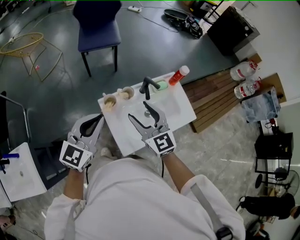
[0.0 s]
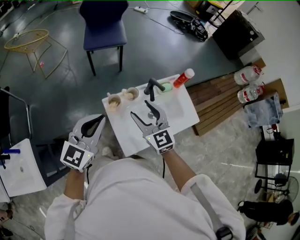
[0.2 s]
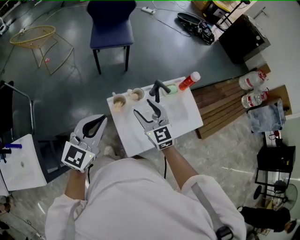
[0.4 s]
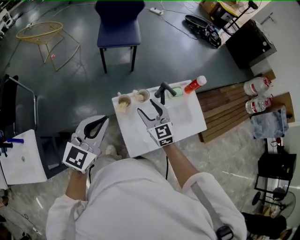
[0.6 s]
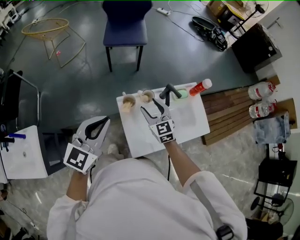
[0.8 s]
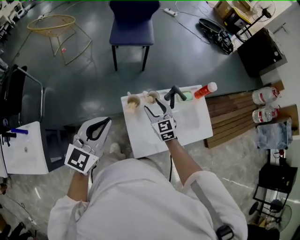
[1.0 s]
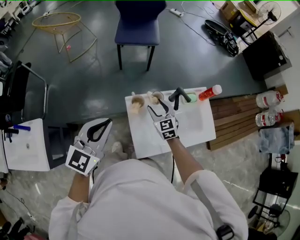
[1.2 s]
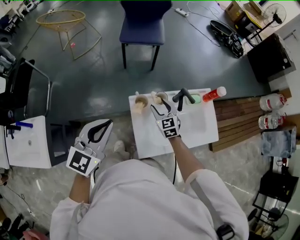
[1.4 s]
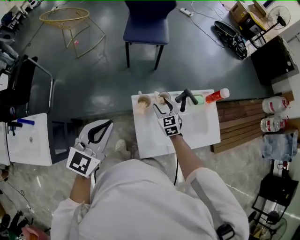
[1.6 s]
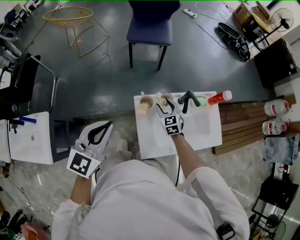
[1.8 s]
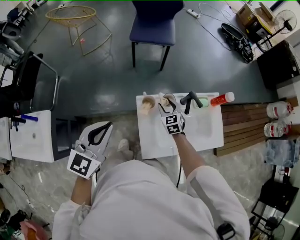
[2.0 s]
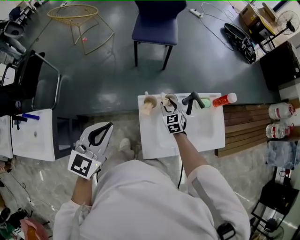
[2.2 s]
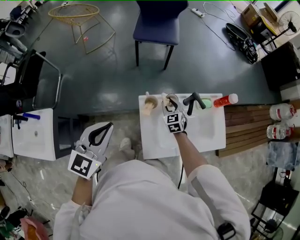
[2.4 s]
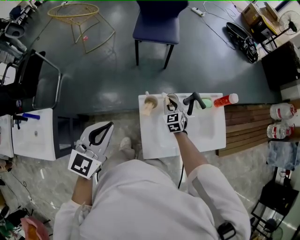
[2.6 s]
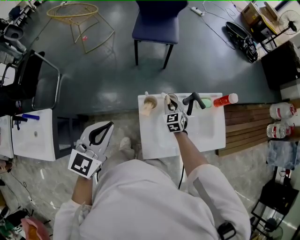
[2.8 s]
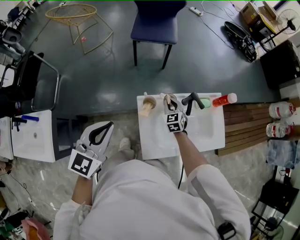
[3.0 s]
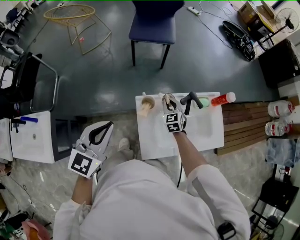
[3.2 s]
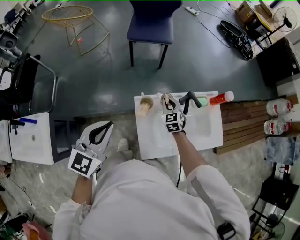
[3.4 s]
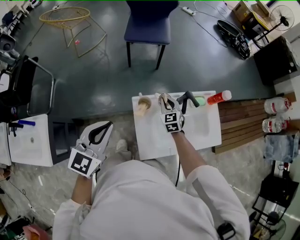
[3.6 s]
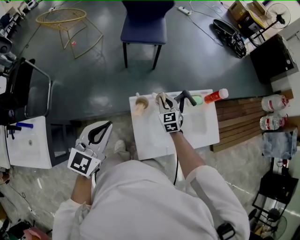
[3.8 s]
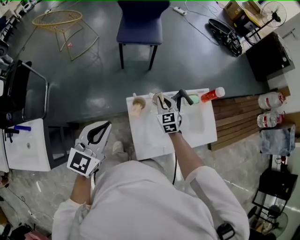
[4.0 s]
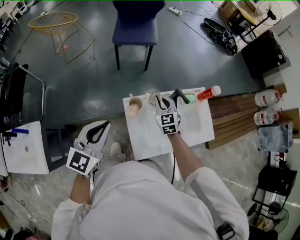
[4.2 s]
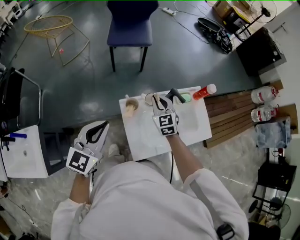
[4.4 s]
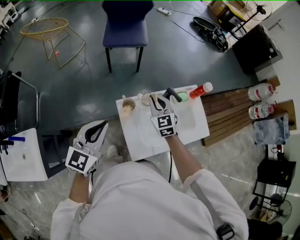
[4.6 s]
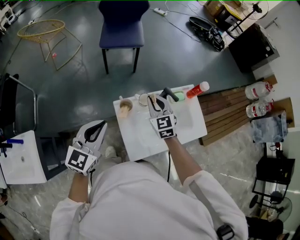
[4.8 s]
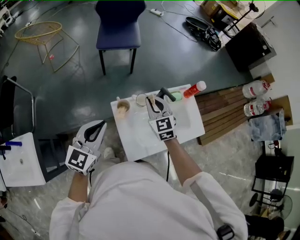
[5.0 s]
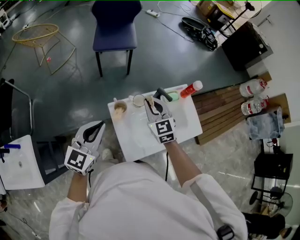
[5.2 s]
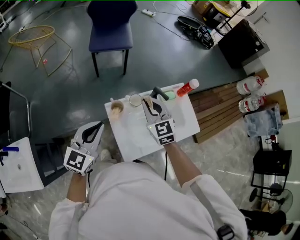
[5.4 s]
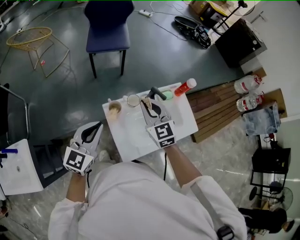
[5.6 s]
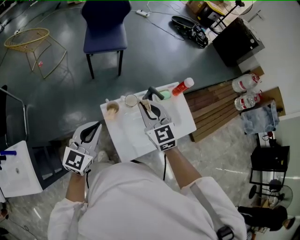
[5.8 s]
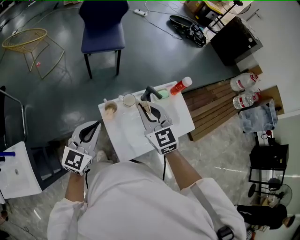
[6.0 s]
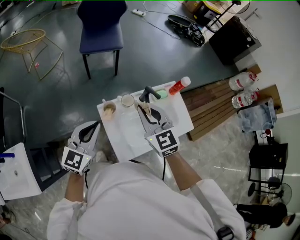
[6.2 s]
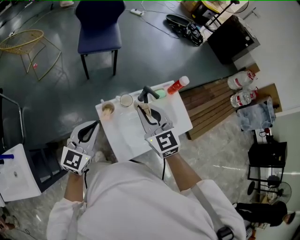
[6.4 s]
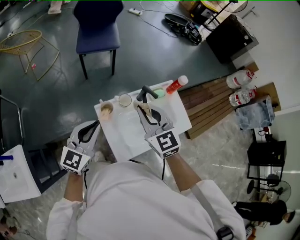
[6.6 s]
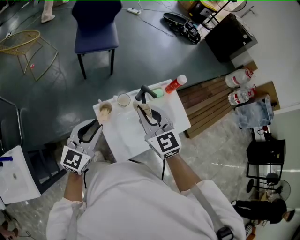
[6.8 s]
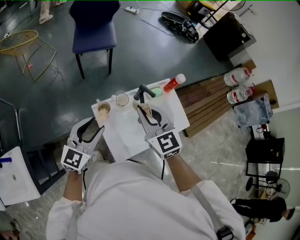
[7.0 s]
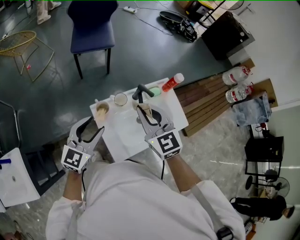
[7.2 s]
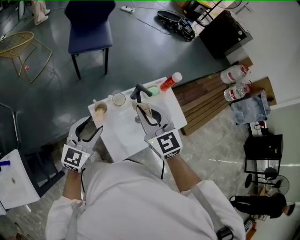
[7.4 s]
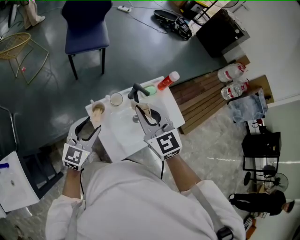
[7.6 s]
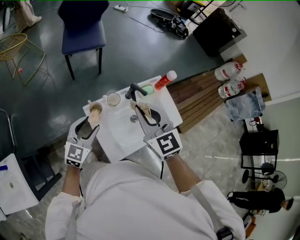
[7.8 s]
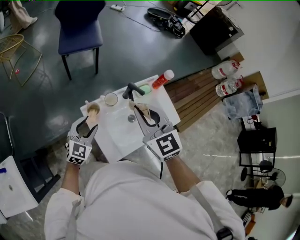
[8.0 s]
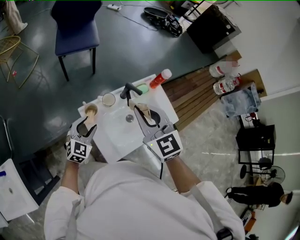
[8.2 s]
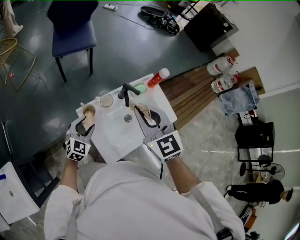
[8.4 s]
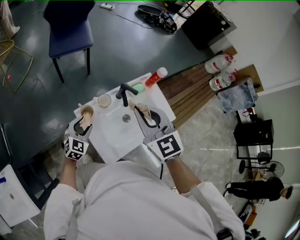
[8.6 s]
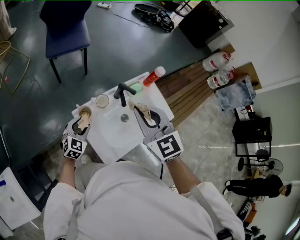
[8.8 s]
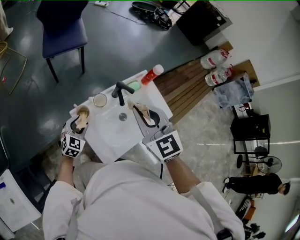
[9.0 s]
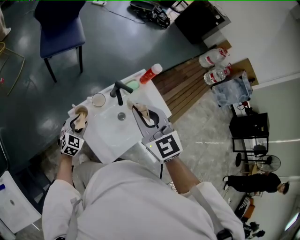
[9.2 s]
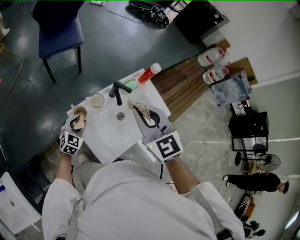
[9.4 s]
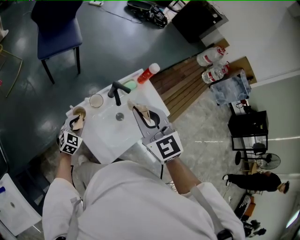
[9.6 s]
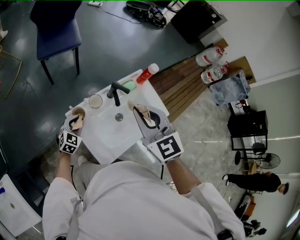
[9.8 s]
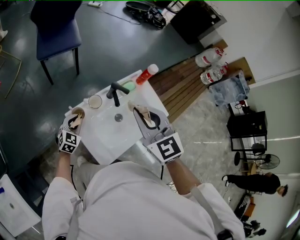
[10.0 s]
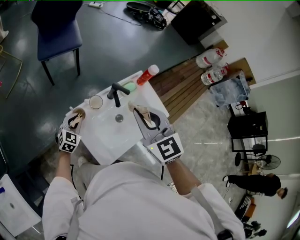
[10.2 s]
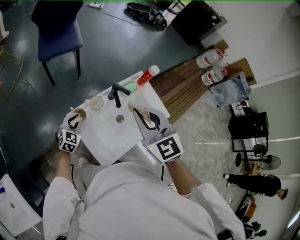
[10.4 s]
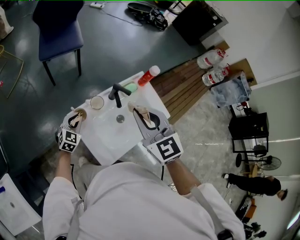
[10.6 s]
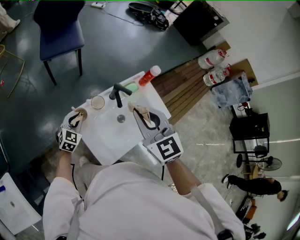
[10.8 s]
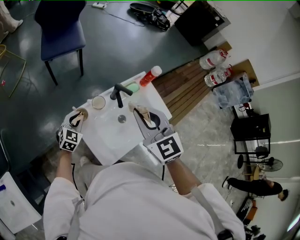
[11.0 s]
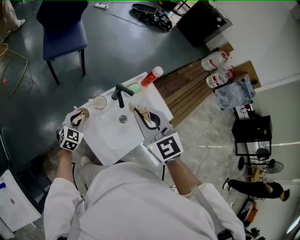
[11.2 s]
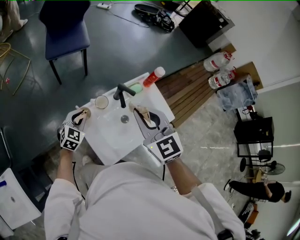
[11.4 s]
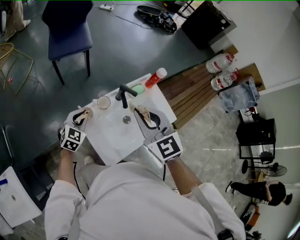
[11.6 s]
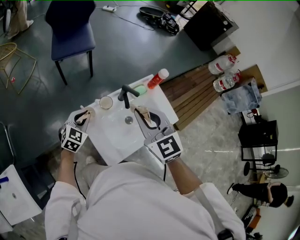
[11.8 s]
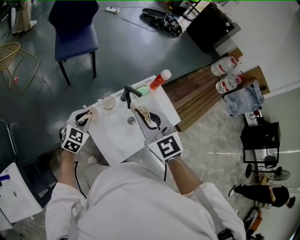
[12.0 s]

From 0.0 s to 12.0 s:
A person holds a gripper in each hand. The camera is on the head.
From 0.0 s to 1.6 s: The left gripper travels to the left by approximately 10 cm. The right gripper travels downward and forward by about 25 cm, and changes its angle by some 20 degrees.
From 1.6 s to 3.0 s: The right gripper moves approximately 5 cm, and closes its fingers.
From 3.0 s to 4.4 s: The right gripper heads upward, covering approximately 10 cm.
From 4.4 s to 6.0 s: The right gripper heads upward and backward, covering approximately 15 cm.
From 6.0 s to 7.6 s: The left gripper shifts roughly 5 cm downward, and opens up.
From 7.6 s to 9.0 s: The left gripper shifts about 20 cm downward, and rotates roughly 20 degrees.
From 9.0 s to 10.4 s: The left gripper closes up.
From 10.4 s to 12.0 s: The left gripper goes some 10 cm upward.

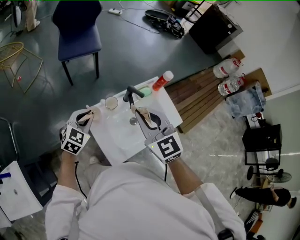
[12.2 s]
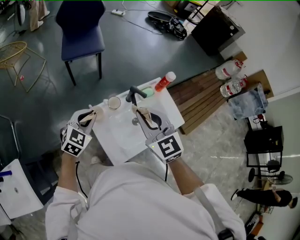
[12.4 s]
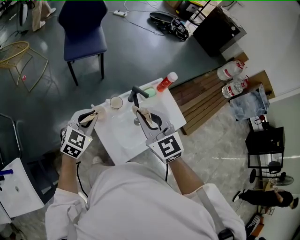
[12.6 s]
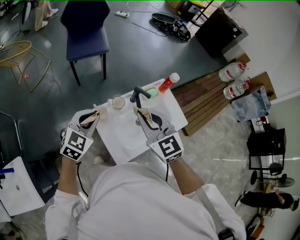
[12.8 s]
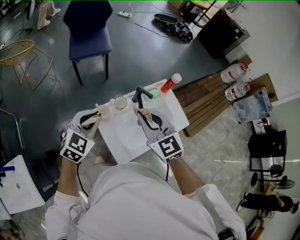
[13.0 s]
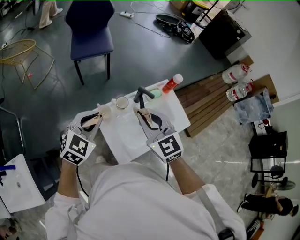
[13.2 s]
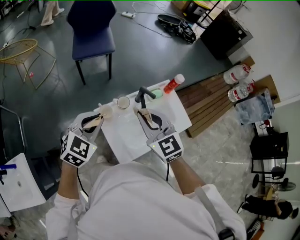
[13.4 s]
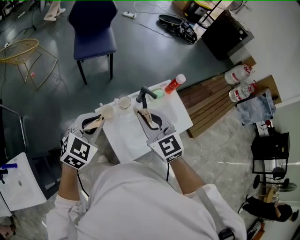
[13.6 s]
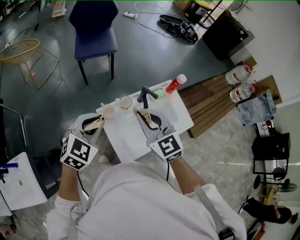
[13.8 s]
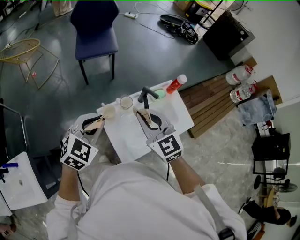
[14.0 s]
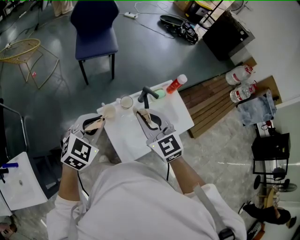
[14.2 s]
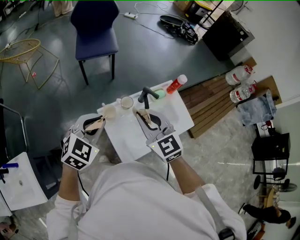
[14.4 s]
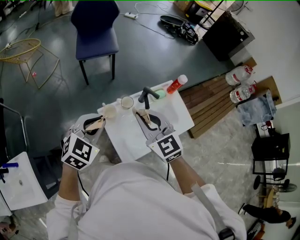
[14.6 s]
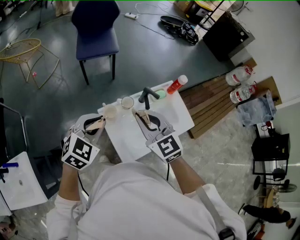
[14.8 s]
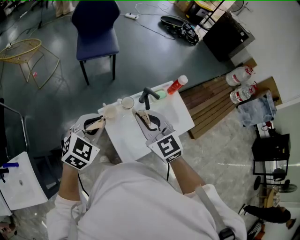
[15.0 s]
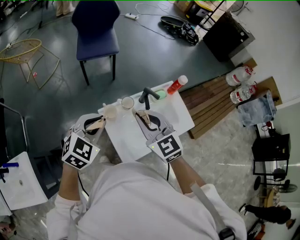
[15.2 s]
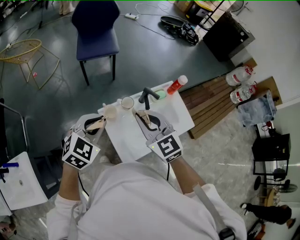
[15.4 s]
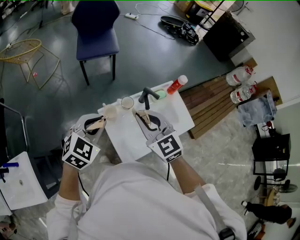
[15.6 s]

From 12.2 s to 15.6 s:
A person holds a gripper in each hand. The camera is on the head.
From 12.2 s to 13.8 s: The left gripper goes some 15 cm upward and backward. The right gripper shifts by approximately 5 cm.
From 13.8 s to 15.6 s: The grippers stay close to where they were, moving slightly.

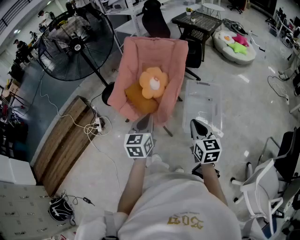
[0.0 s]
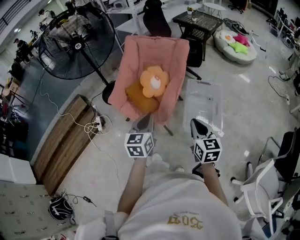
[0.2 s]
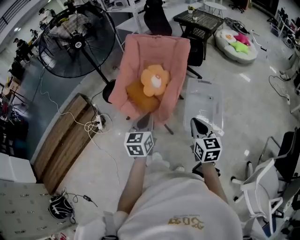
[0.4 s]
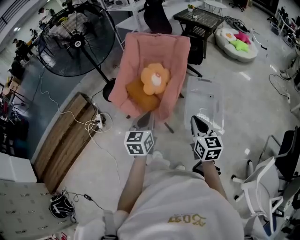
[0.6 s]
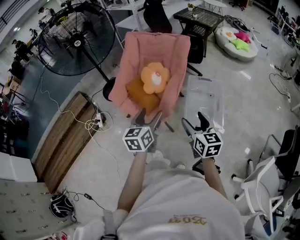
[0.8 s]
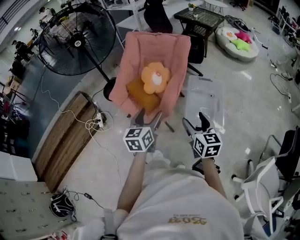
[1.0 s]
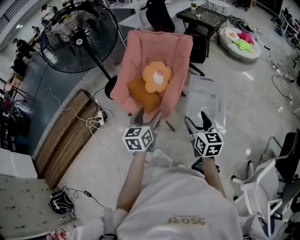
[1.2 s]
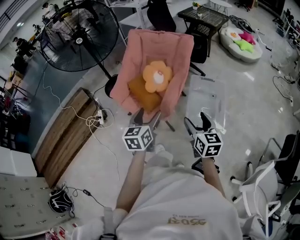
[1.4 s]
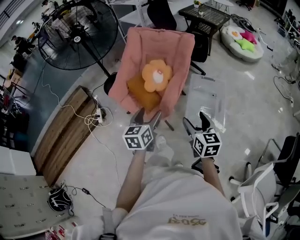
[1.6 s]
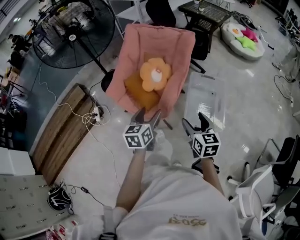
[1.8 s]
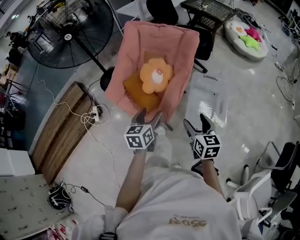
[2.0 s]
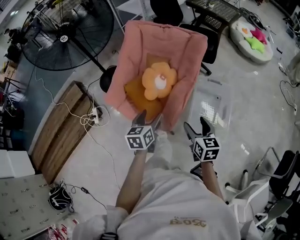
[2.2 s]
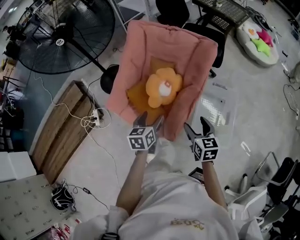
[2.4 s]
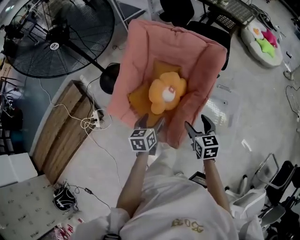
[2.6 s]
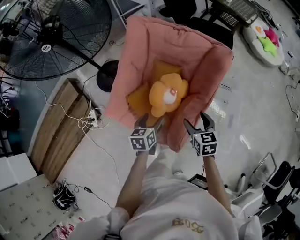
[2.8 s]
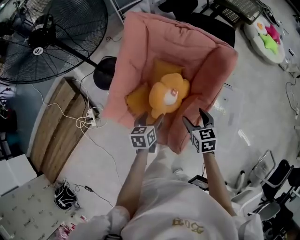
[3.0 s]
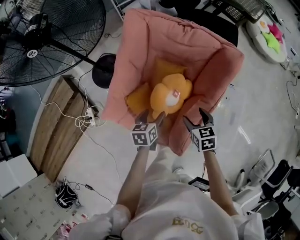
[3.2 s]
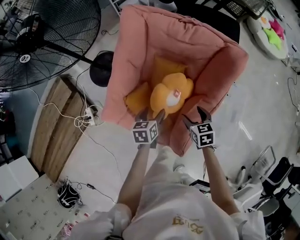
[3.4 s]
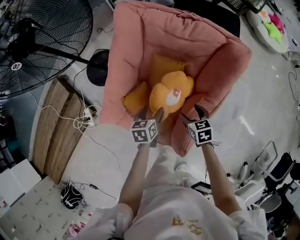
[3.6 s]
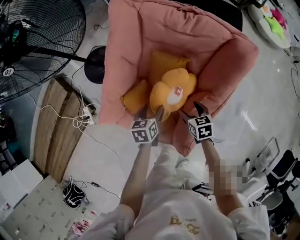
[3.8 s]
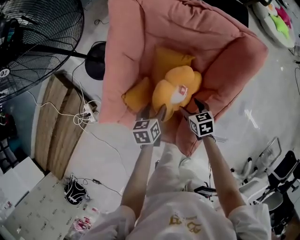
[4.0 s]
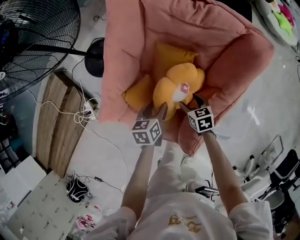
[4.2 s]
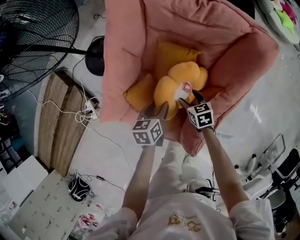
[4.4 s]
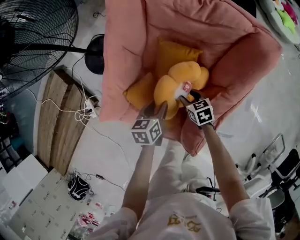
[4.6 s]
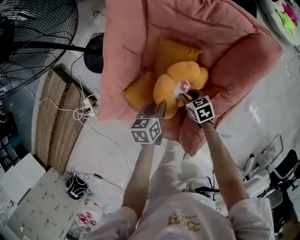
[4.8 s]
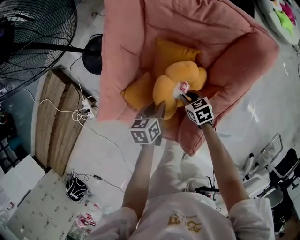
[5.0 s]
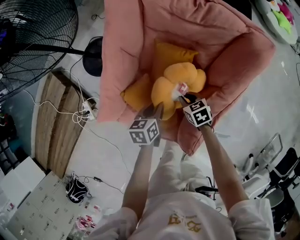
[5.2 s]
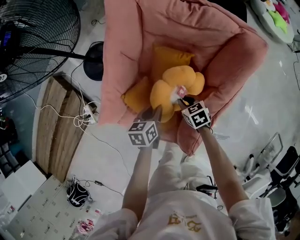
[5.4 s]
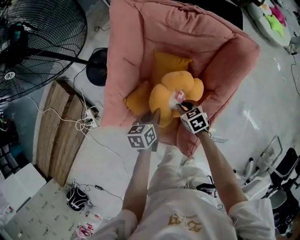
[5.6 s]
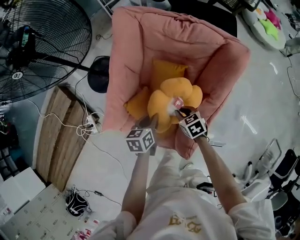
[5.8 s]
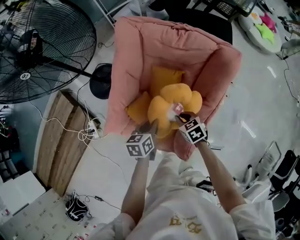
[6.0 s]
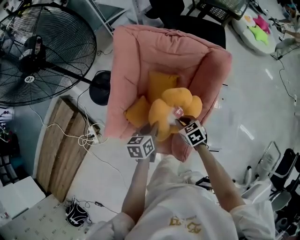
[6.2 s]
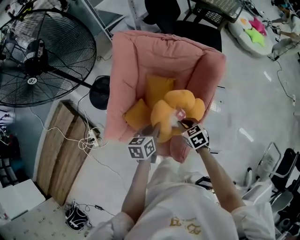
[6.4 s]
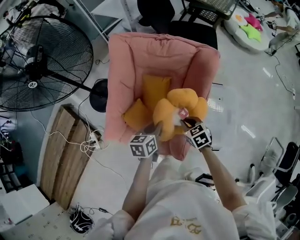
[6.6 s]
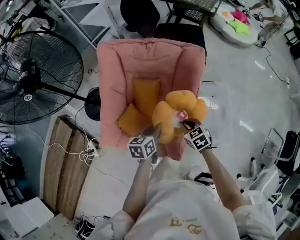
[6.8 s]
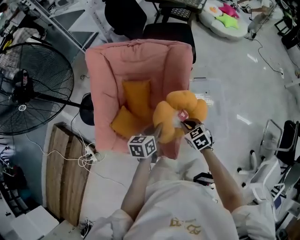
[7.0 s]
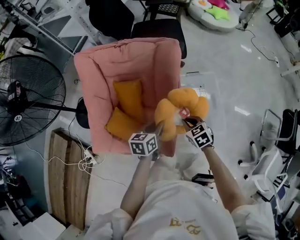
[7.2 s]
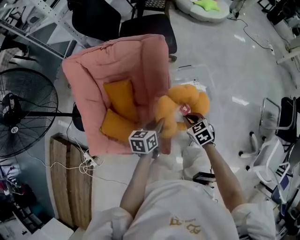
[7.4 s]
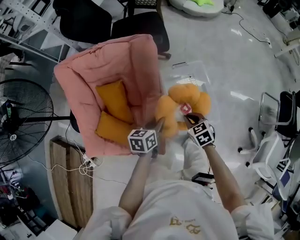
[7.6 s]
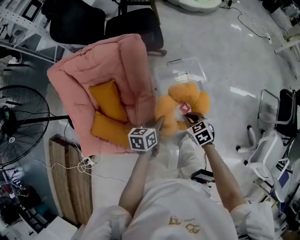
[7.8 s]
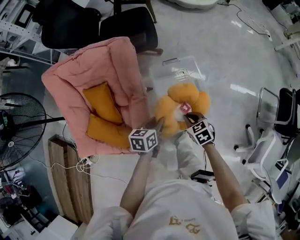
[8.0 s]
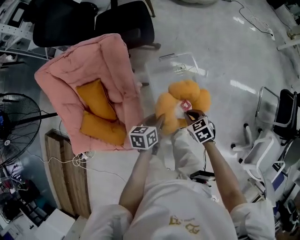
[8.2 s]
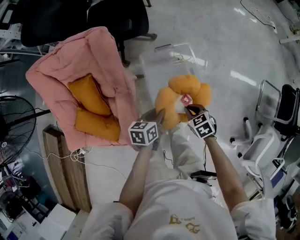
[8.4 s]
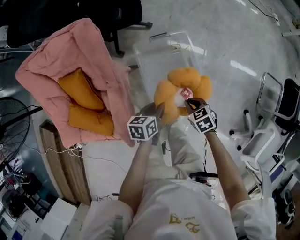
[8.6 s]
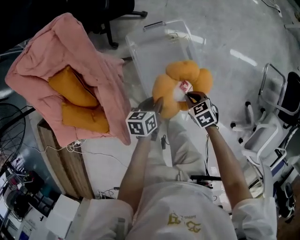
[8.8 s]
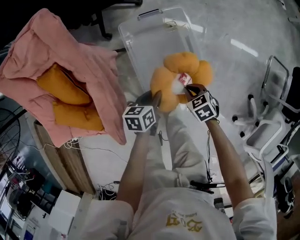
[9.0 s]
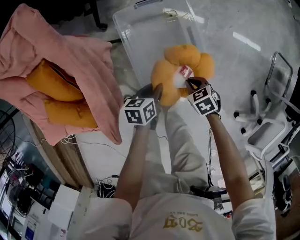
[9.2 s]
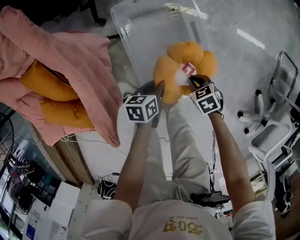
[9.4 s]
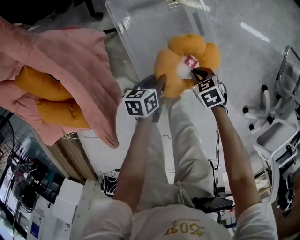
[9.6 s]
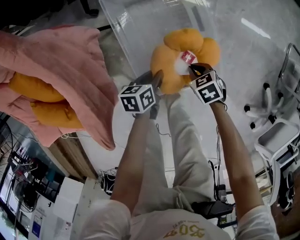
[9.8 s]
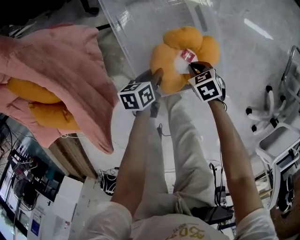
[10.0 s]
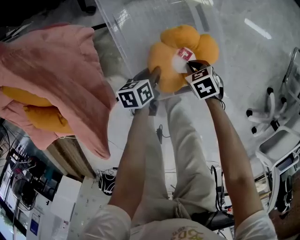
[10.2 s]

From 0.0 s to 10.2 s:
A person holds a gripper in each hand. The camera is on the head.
From 0.0 s to 1.4 s: The right gripper opens its fingers; the left gripper opens.
From 1.4 s to 3.0 s: Both grippers are carried forward, roughly 40 cm. Both grippers travel together downward, roughly 20 cm. The right gripper changes its angle by about 30 degrees. Meanwhile the left gripper changes its angle by some 30 degrees.
From 3.0 s to 4.4 s: The right gripper travels downward by some 25 cm; the left gripper goes about 15 cm downward and forward.
From 4.4 s to 5.8 s: The grippers both shift upward by approximately 5 cm. The right gripper closes its fingers.
From 5.8 s to 7.2 s: The right gripper ends up roughly 25 cm from where it was, and rotates approximately 20 degrees. Meanwhile the left gripper ends up some 25 cm from where it was, and swivels some 30 degrees.
From 7.2 s to 8.8 s: Both grippers move to the right and downward, some 35 cm.
From 8.8 s to 10.2 s: Both grippers move downward, approximately 30 cm.
